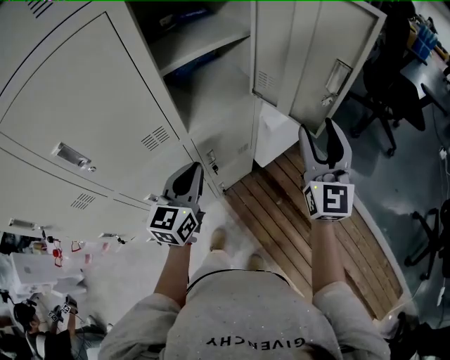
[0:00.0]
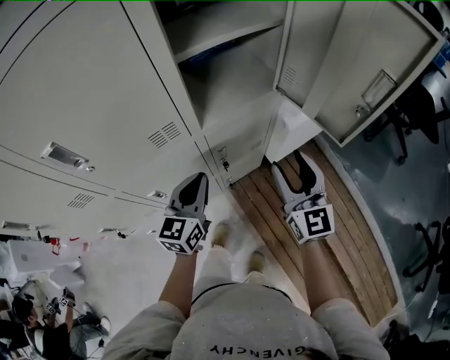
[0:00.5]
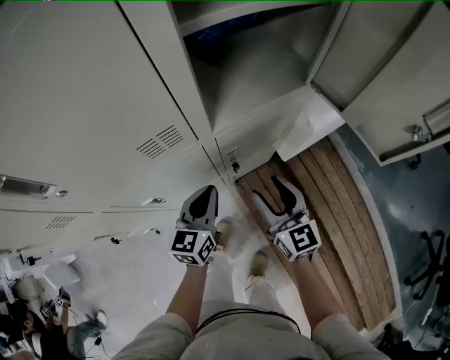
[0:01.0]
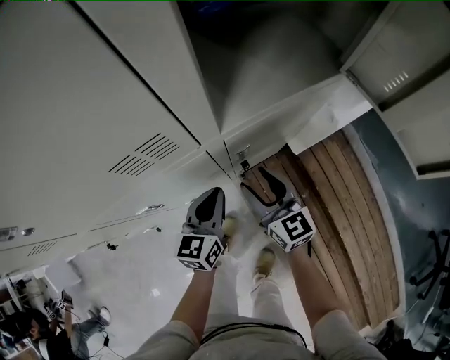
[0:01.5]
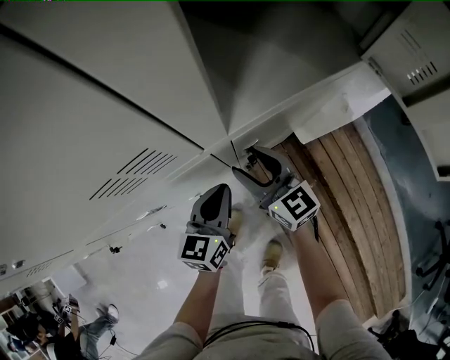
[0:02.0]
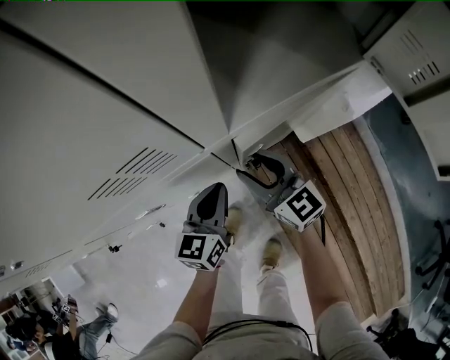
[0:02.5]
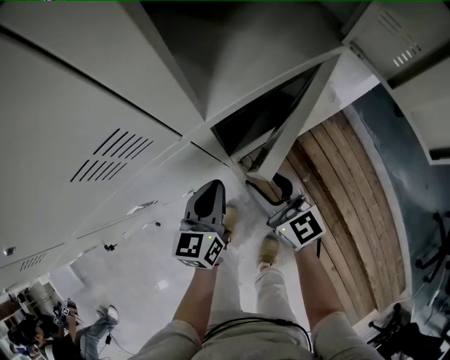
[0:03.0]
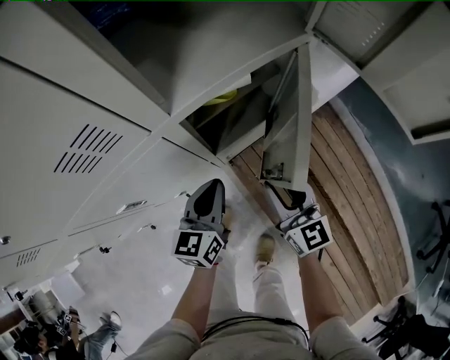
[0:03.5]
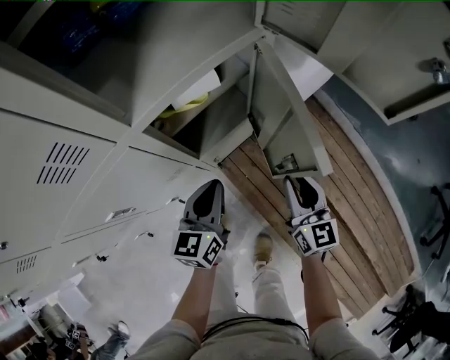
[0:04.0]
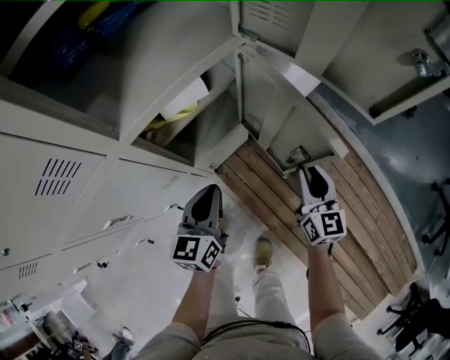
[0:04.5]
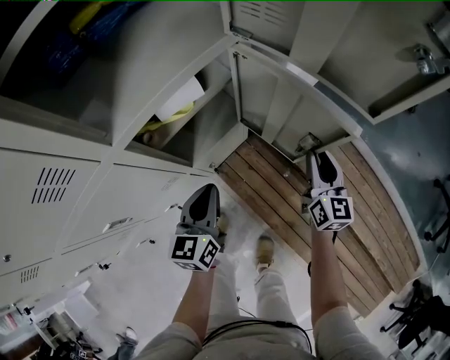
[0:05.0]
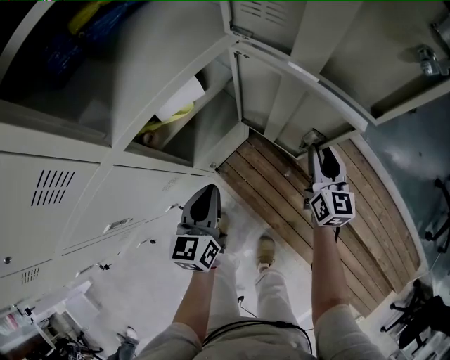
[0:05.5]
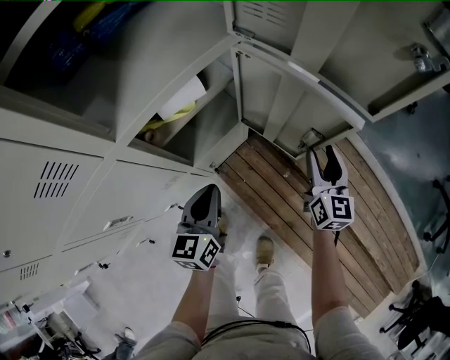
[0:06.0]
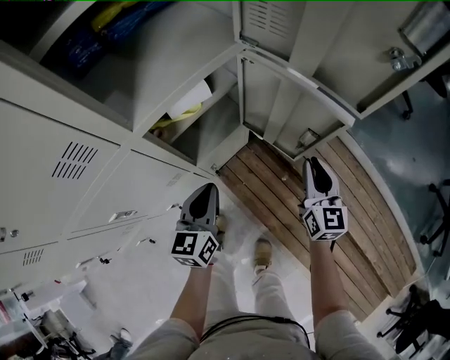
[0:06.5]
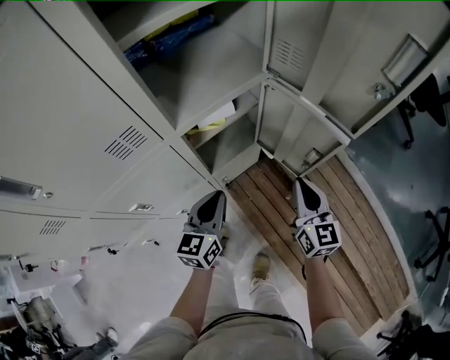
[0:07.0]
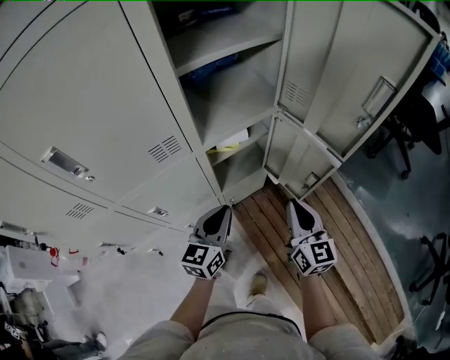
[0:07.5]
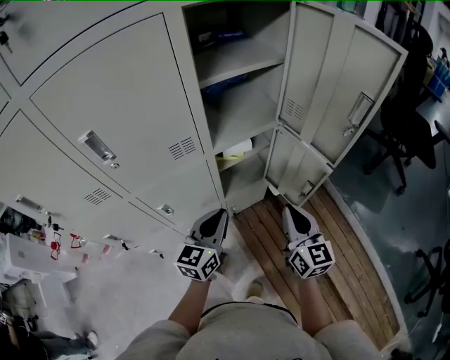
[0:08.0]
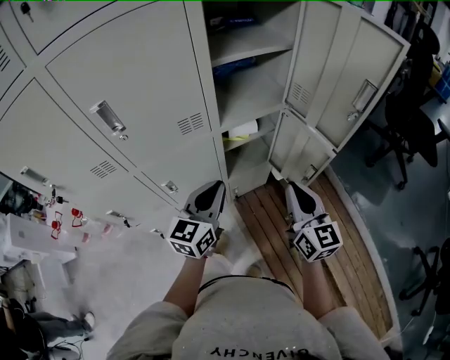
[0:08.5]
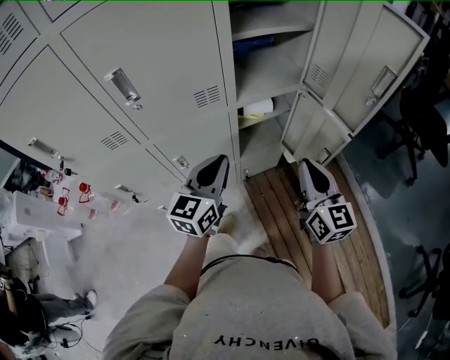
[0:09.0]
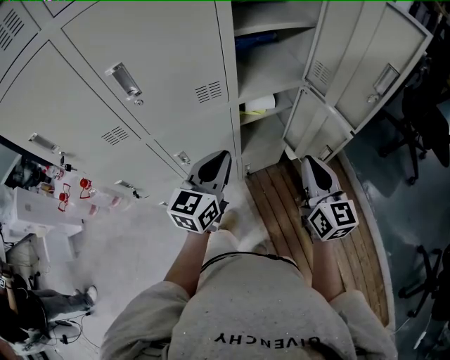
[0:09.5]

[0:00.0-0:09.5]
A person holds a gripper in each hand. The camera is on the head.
0:00.0 to 0:02.0: The left gripper goes about 30 cm downward; the right gripper shifts approximately 50 cm downward and to the left, and rotates roughly 50 degrees.
0:02.0 to 0:04.0: The left gripper heads to the right, covering some 10 cm; the right gripper moves to the right and backward, roughly 30 cm, swivels some 40 degrees, and closes its fingers.
0:04.0 to 0:05.5: The right gripper heads to the right and forward, covering approximately 15 cm.
0:05.5 to 0:07.5: The left gripper heads upward and backward, covering some 15 cm. The right gripper heads upward, to the left and backward, covering roughly 25 cm, swivels roughly 20 degrees, and closes its fingers.
0:07.5 to 0:09.5: The right gripper is displaced upward and backward by approximately 10 cm, while the left gripper goes about 15 cm upward, backward and to the left.

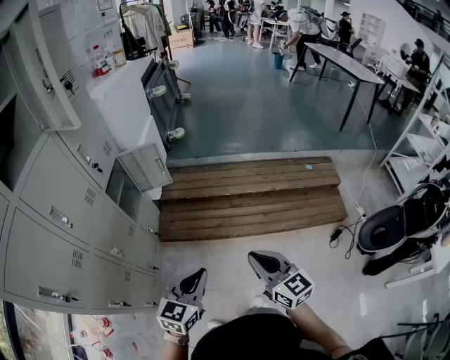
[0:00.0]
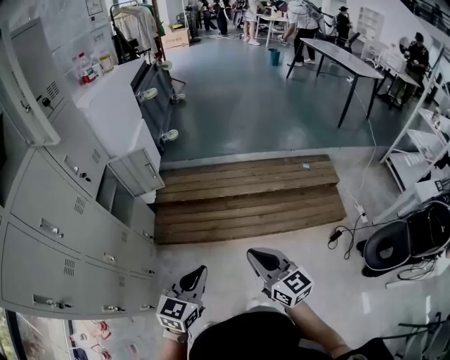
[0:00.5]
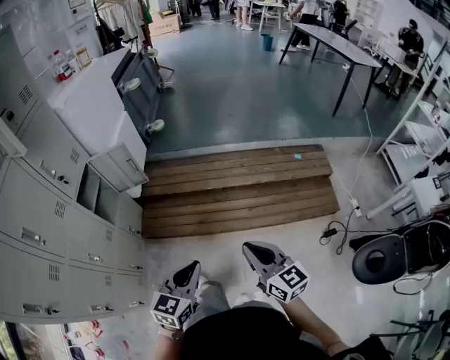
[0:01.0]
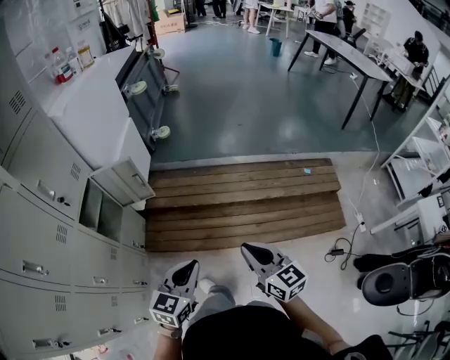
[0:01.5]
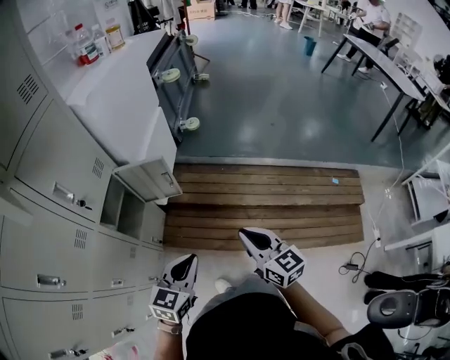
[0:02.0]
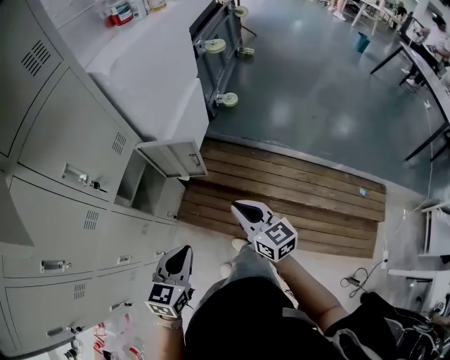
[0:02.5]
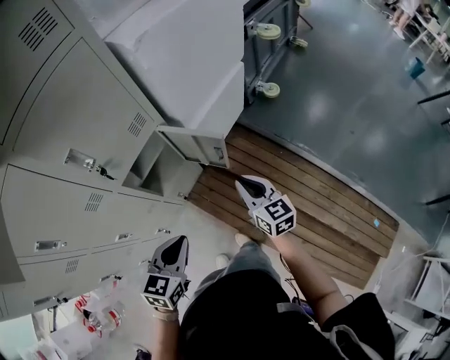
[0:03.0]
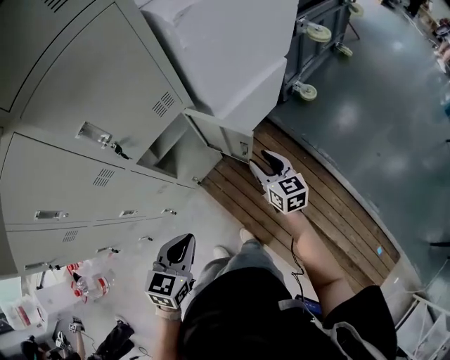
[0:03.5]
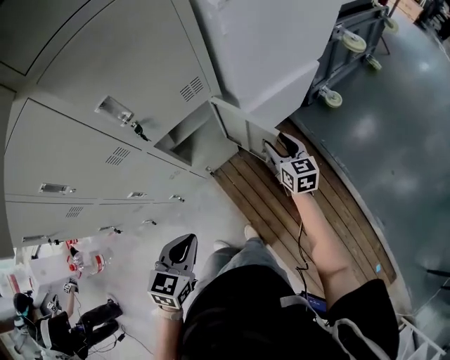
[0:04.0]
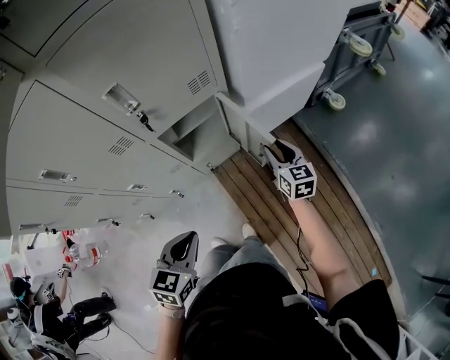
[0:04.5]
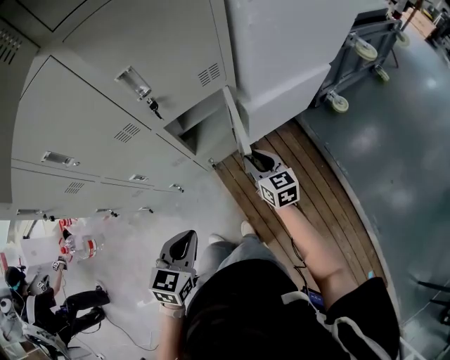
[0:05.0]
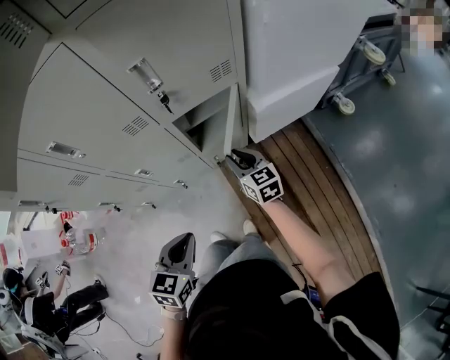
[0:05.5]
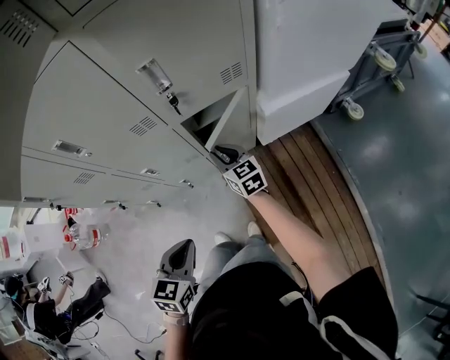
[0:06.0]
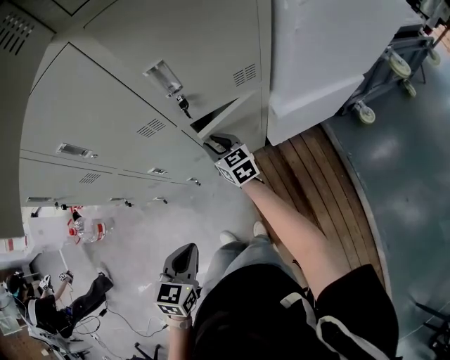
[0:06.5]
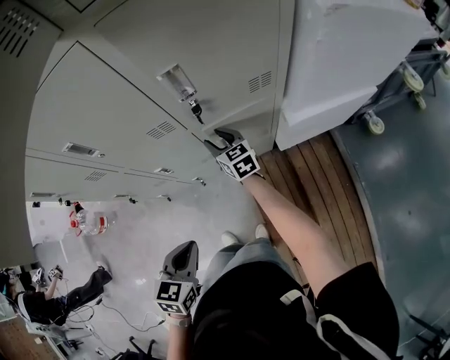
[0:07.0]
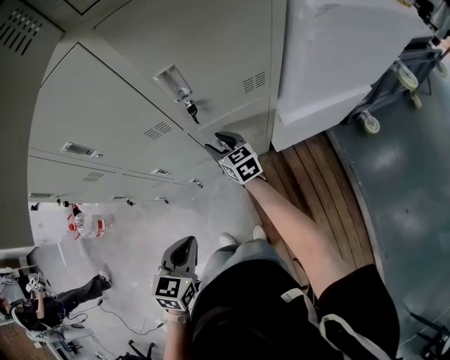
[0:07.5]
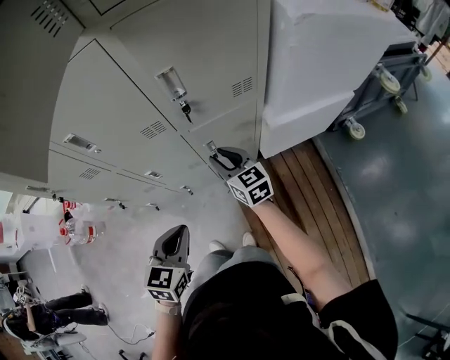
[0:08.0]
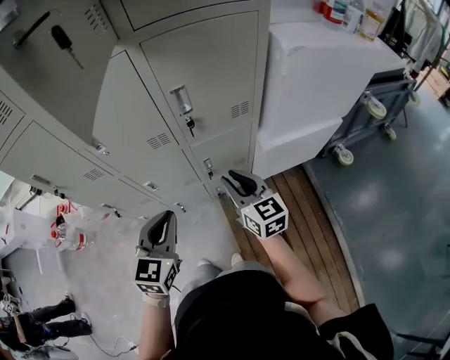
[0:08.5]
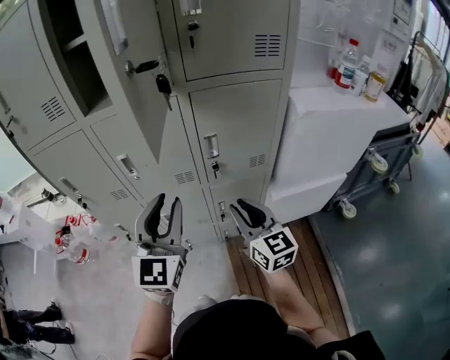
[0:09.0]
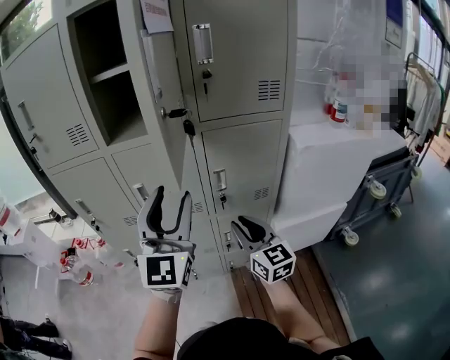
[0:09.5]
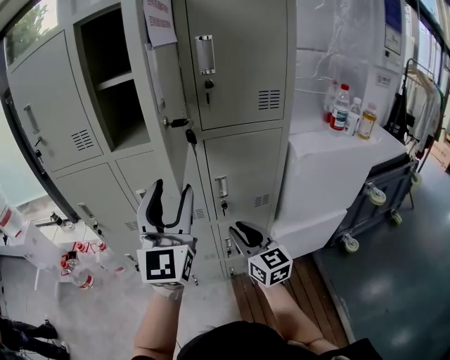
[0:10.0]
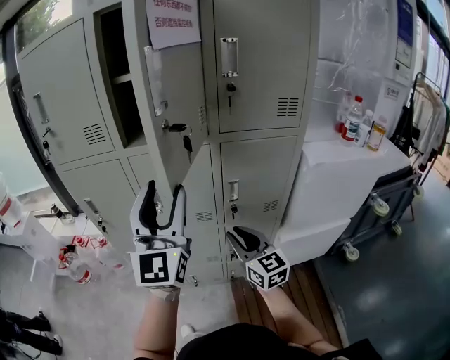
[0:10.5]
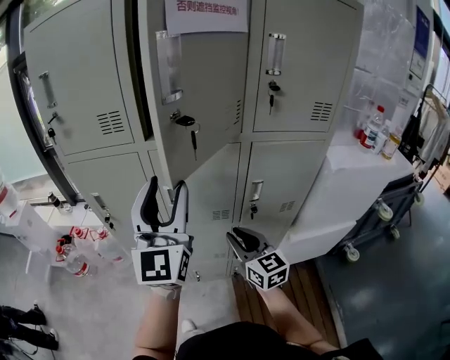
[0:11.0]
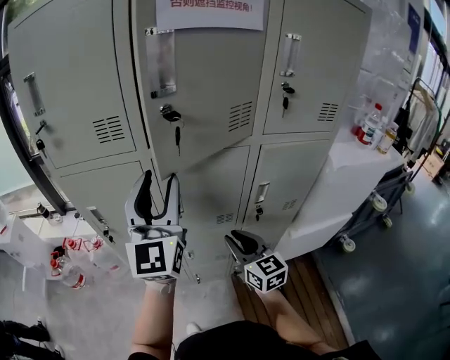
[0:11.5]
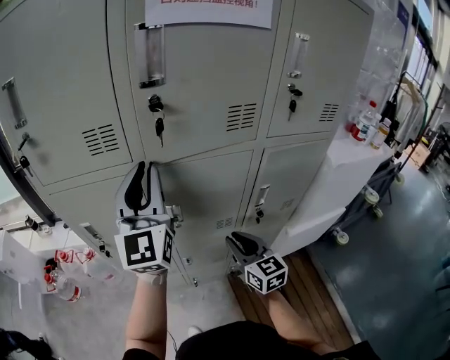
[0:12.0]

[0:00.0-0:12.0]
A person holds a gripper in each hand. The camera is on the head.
0:00.0 to 0:02.0: The two grippers go roughly 35 cm forward.
0:02.0 to 0:04.0: The left gripper shifts by about 15 cm, and rotates some 50 degrees; the right gripper shifts by some 50 cm, rotates about 40 degrees, and opens.
0:04.0 to 0:06.0: The left gripper moves to the left and backward, about 10 cm. The right gripper is displaced to the left by approximately 30 cm, rotates approximately 30 degrees, and closes.
0:06.0 to 0:08.0: The left gripper shifts roughly 5 cm forward. The right gripper is displaced upward by approximately 5 cm, and moves approximately 10 cm forward and comes back.
0:08.0 to 0:10.0: The right gripper shifts approximately 25 cm upward, while the left gripper shifts roughly 40 cm upward, points its fingers some 60 degrees further upward, and opens up.
0:10.0 to 0:12.0: The left gripper goes roughly 30 cm to the left and forward, and closes up. The right gripper heads to the left and forward, covering some 20 cm.

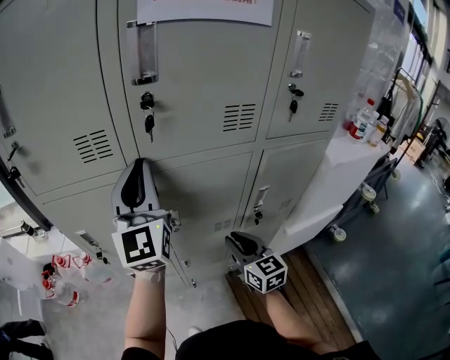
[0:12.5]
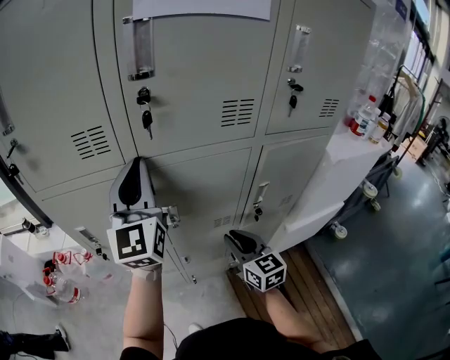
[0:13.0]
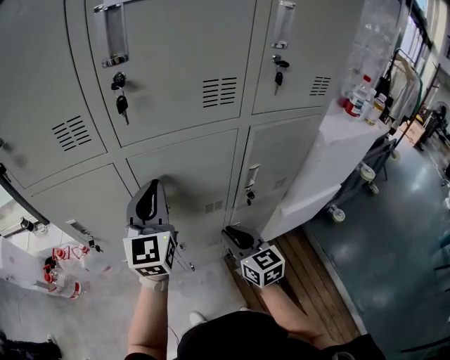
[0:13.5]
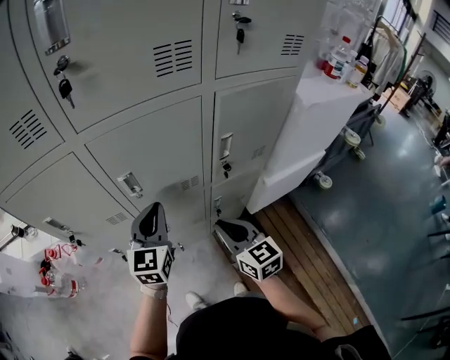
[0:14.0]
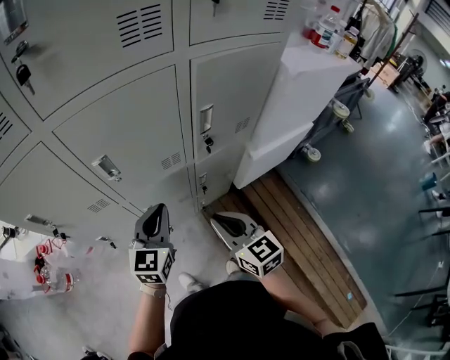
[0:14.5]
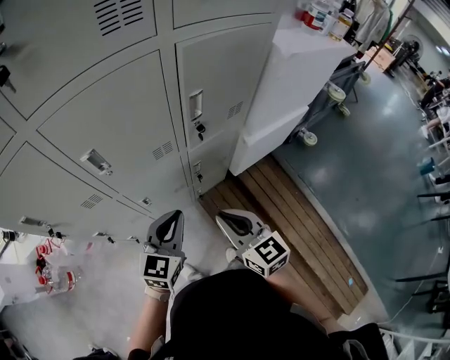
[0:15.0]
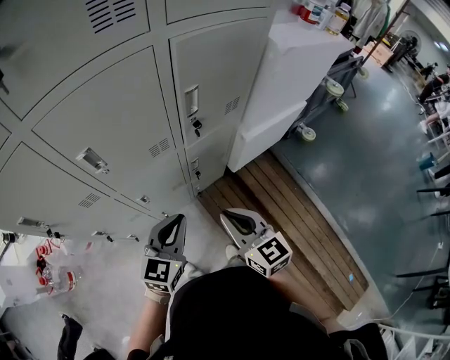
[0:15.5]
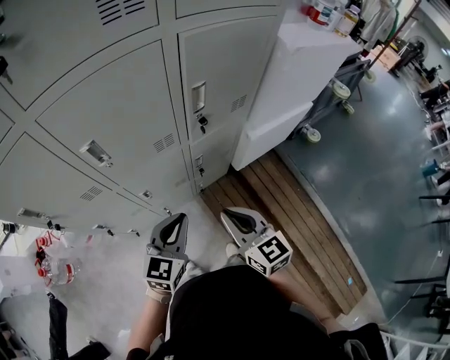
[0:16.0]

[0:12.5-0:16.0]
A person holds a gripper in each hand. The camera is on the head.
0:12.5 to 0:14.5: The right gripper heads backward and downward, covering about 15 cm, while the left gripper heads downward and to the right, covering roughly 35 cm, and tilts its fingers about 40 degrees downward.
0:14.5 to 0:16.0: The right gripper ends up some 5 cm from where it was; the left gripper is displaced backward and to the right by roughly 10 cm.

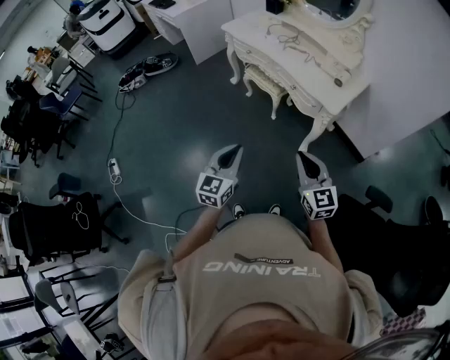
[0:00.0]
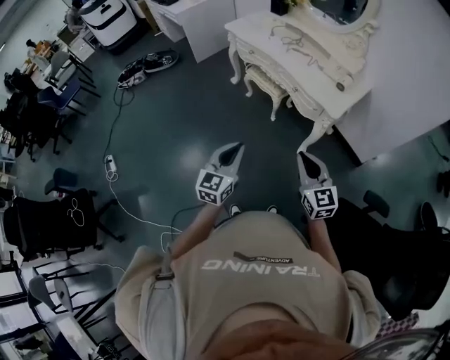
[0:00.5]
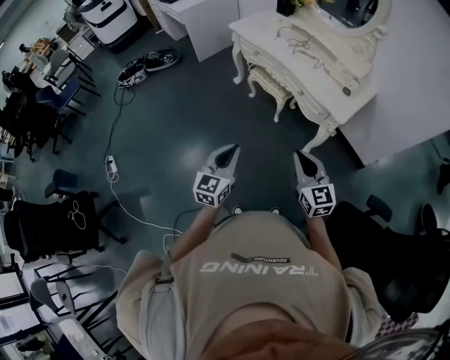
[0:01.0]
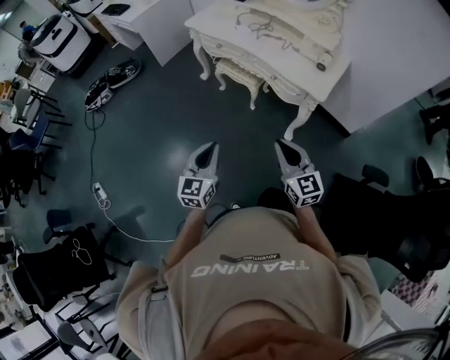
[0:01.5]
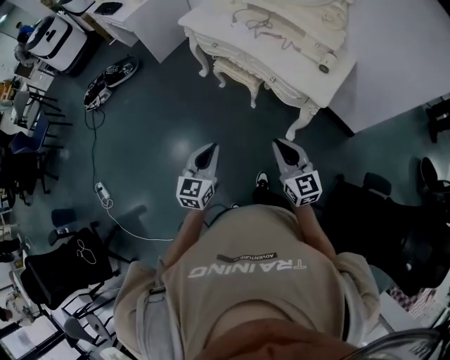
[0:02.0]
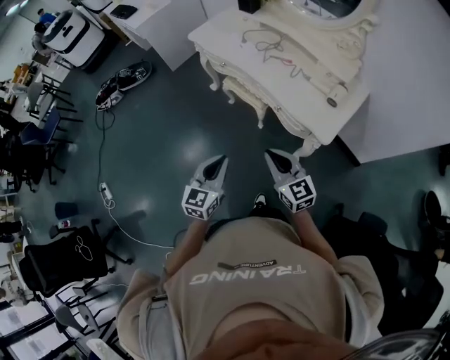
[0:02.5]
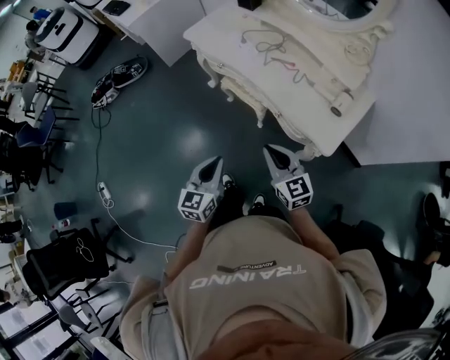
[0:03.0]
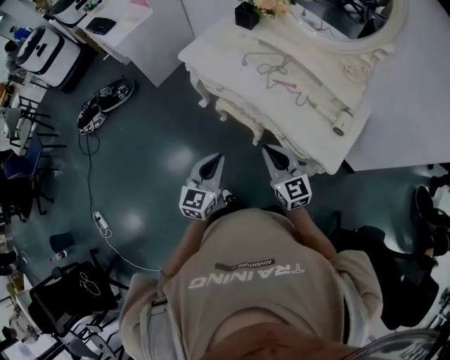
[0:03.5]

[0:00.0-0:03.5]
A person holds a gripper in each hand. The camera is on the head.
0:00.0 to 0:02.0: The two grippers go some 15 cm forward.
0:02.0 to 0:03.5: Both grippers move forward, about 30 cm.
